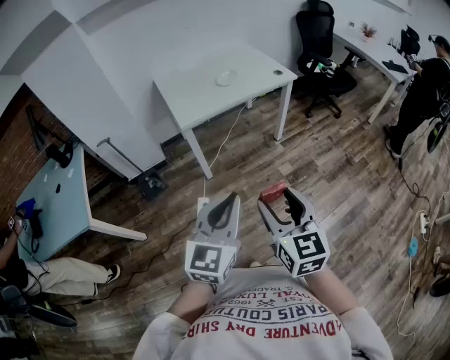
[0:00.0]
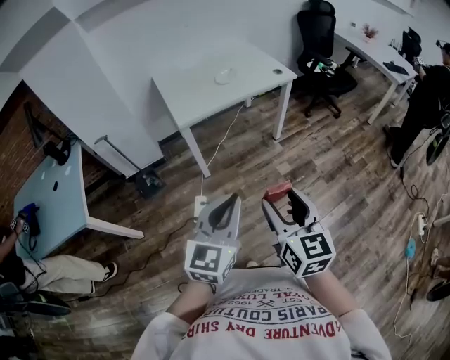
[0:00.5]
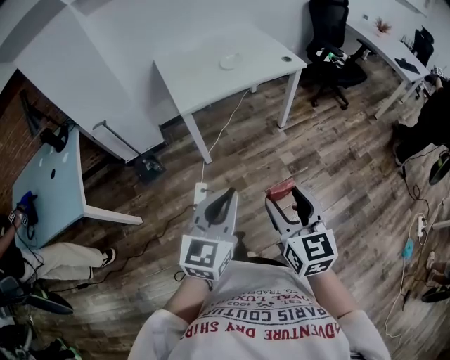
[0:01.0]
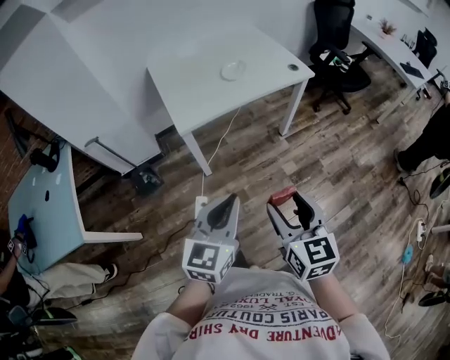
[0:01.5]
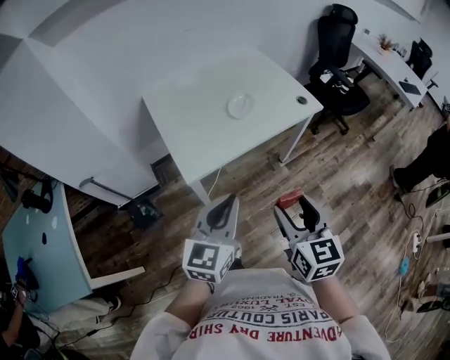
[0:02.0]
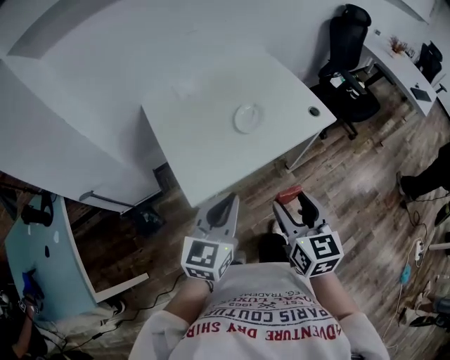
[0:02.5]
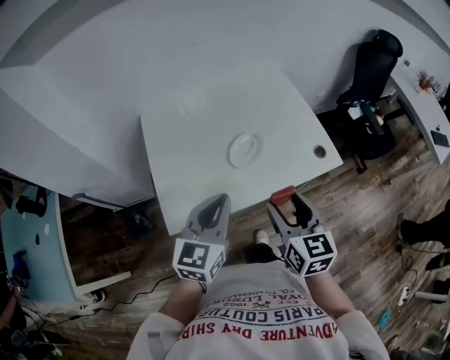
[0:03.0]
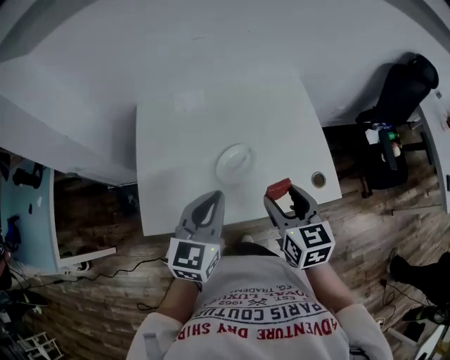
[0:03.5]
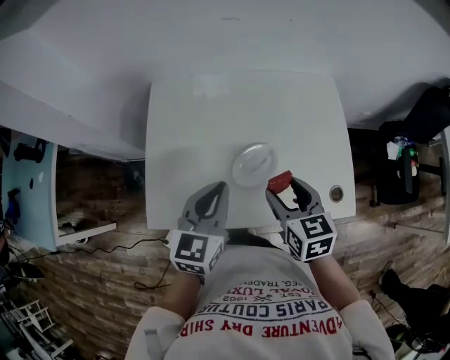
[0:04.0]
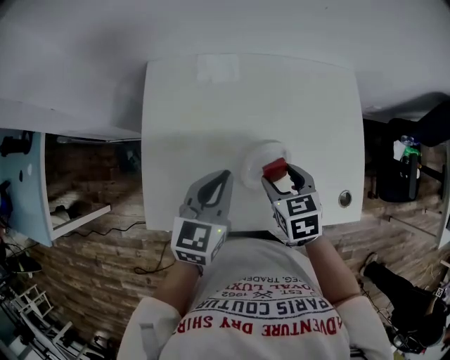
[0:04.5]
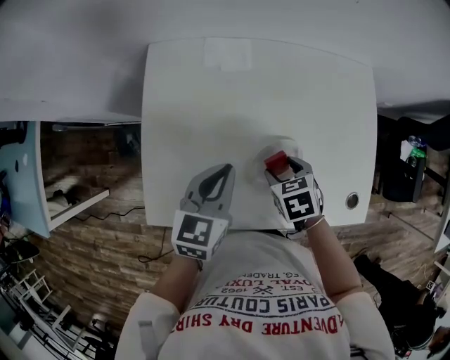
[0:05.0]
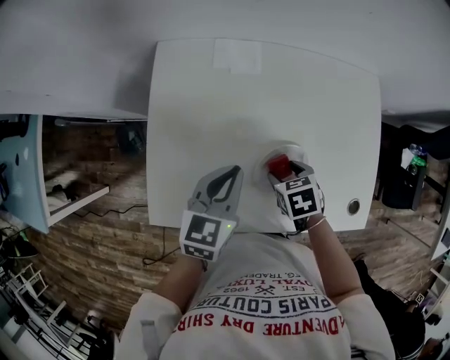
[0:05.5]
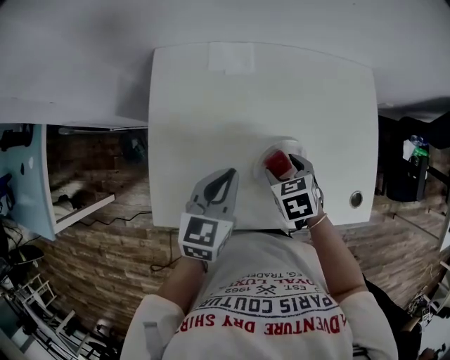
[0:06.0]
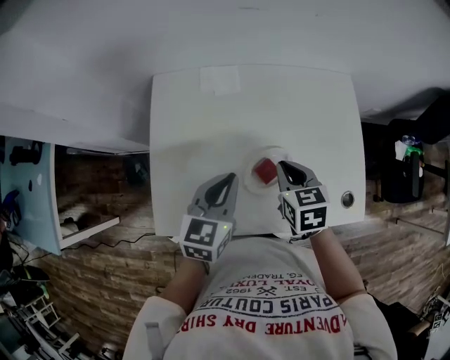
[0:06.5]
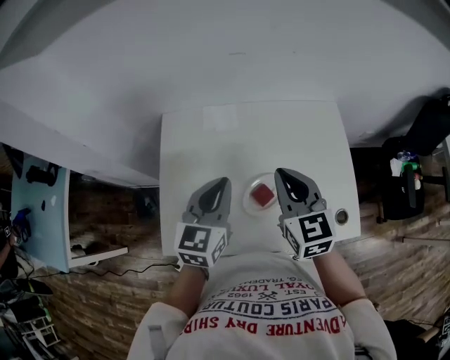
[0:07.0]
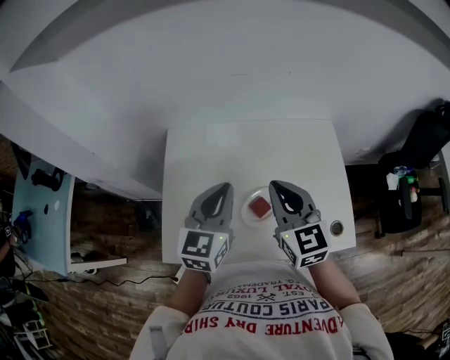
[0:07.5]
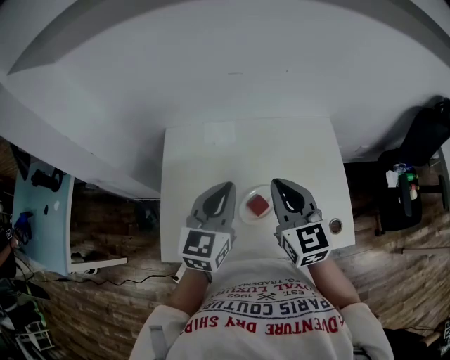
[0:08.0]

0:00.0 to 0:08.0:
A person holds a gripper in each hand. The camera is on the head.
0:00.0 to 0:02.0: Both grippers move forward, approximately 35 cm.
0:02.0 to 0:04.0: The pair of grippers is taken approximately 40 cm. The right gripper changes its angle by approximately 40 degrees. The left gripper changes its angle by approximately 30 degrees.
0:04.0 to 0:06.0: The right gripper is displaced downward and forward by roughly 15 cm, and turns by approximately 30 degrees, while the left gripper is displaced downward and forward by roughly 10 cm.
0:06.0 to 0:08.0: The right gripper shifts roughly 25 cm upward, angles its fingers upward, by about 50 degrees, and closes. The left gripper goes about 15 cm upward, and turns by about 20 degrees.

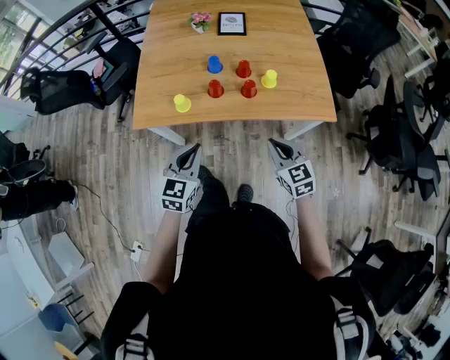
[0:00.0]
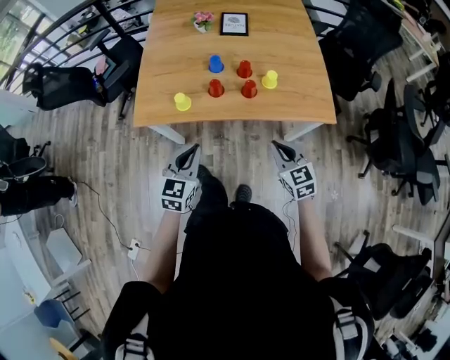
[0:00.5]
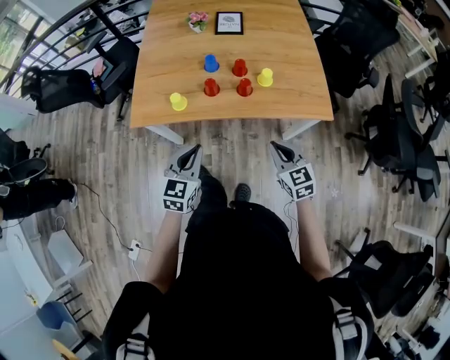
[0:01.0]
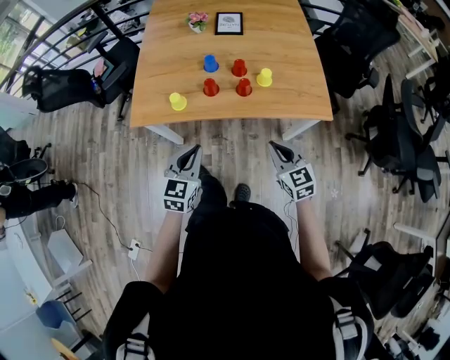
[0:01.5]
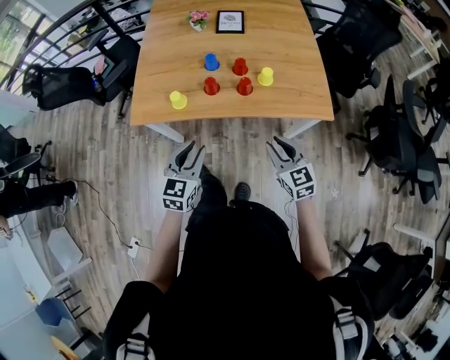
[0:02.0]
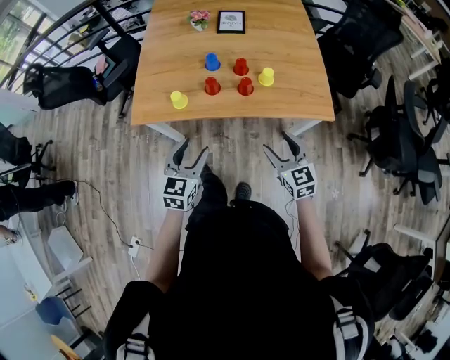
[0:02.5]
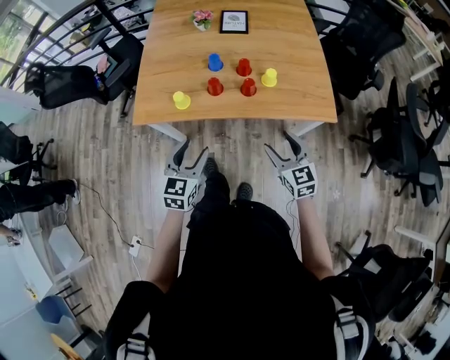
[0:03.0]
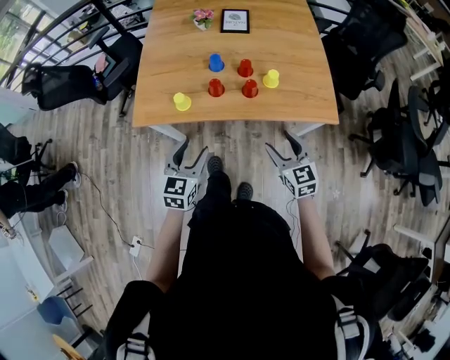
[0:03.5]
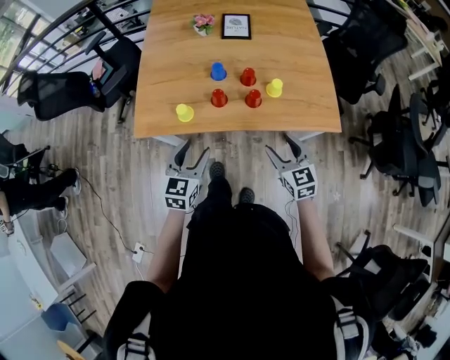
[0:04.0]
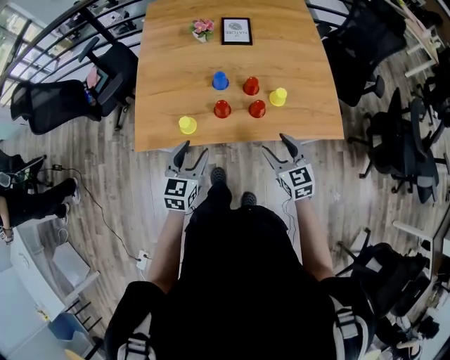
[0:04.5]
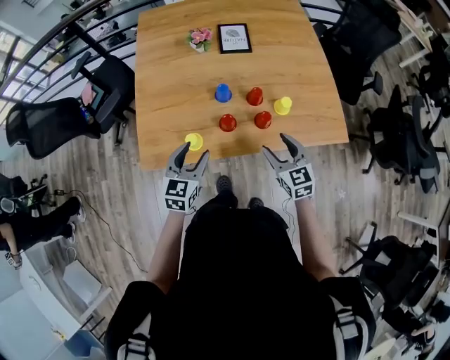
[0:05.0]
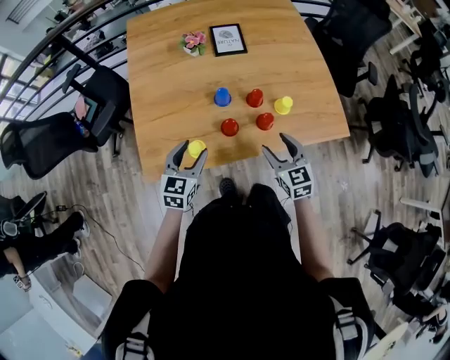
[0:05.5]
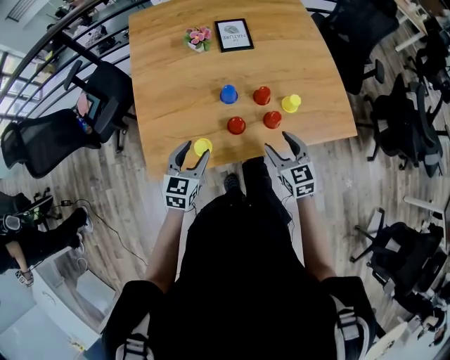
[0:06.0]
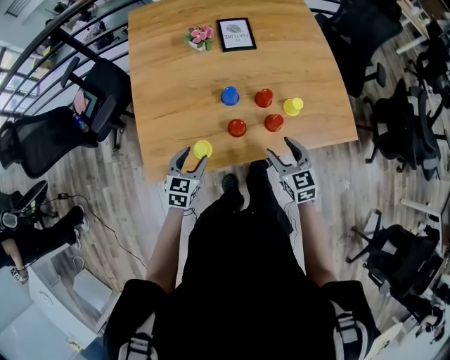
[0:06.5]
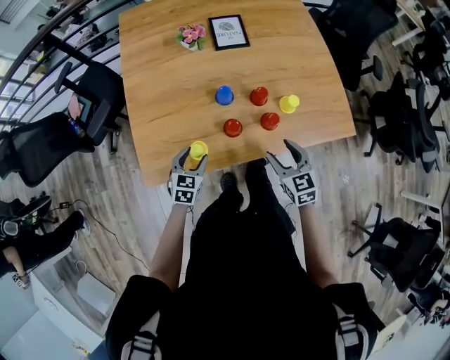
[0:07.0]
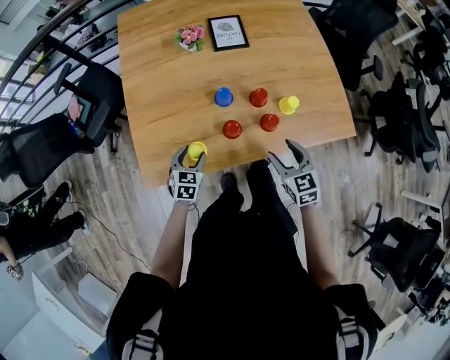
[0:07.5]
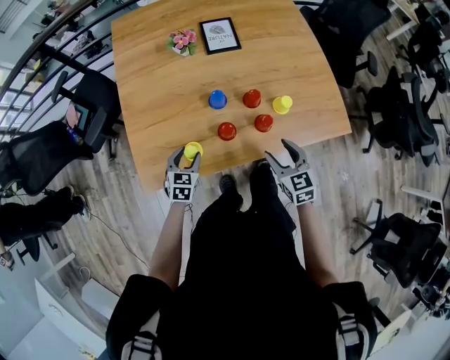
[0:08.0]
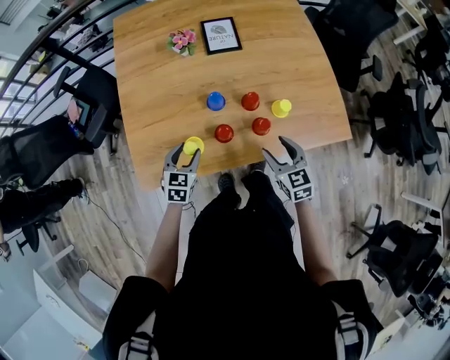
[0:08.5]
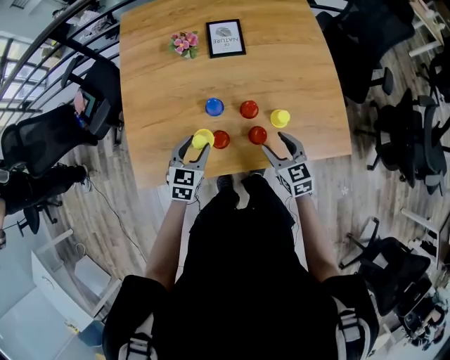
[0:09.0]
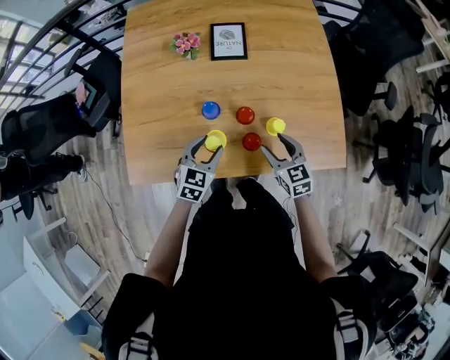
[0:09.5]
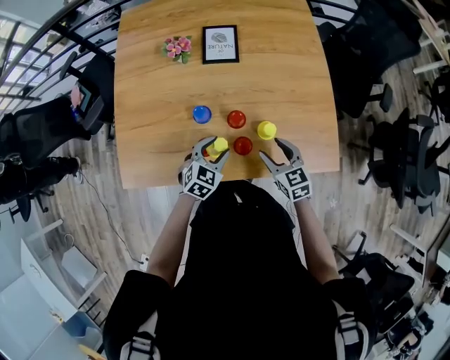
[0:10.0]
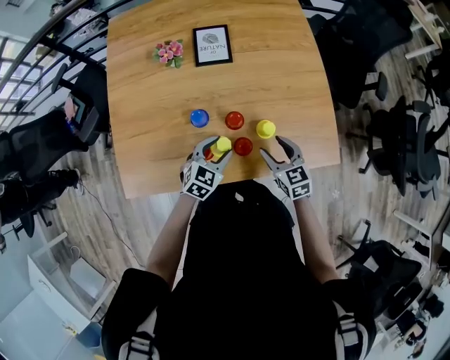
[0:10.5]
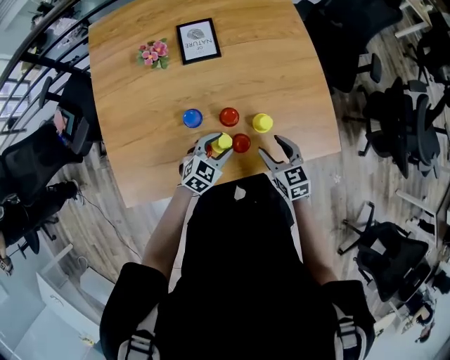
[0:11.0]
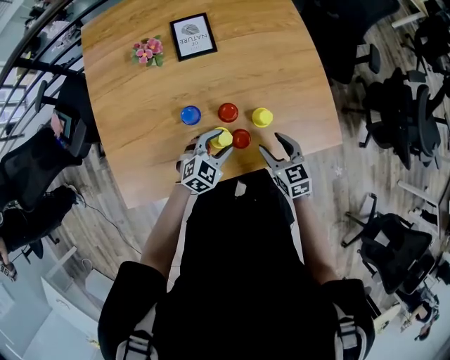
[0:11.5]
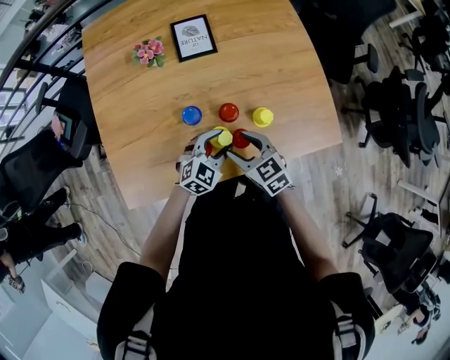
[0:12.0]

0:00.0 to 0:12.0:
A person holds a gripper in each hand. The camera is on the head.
0:00.0 to 0:02.0: The left gripper opens.
0:02.0 to 0:04.0: The grippers both shift forward by approximately 5 cm. The right gripper opens up, while the left gripper opens.
0:04.0 to 0:06.0: The grippers both shift forward and to the left by roughly 15 cm.
0:06.0 to 0:08.0: The left gripper heads downward, covering about 10 cm.
0:08.0 to 0:10.0: The right gripper shifts approximately 15 cm forward and to the right. The left gripper shifts approximately 20 cm to the right.
0:10.0 to 0:12.0: The left gripper turns by approximately 20 degrees. Meanwhile the right gripper heads to the left, covering approximately 10 cm.

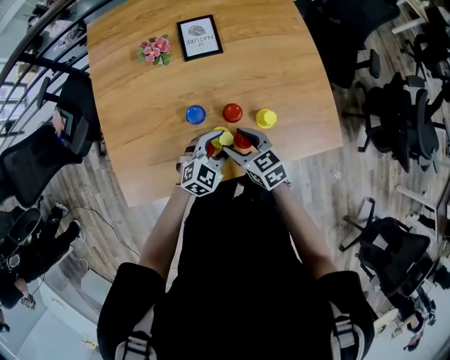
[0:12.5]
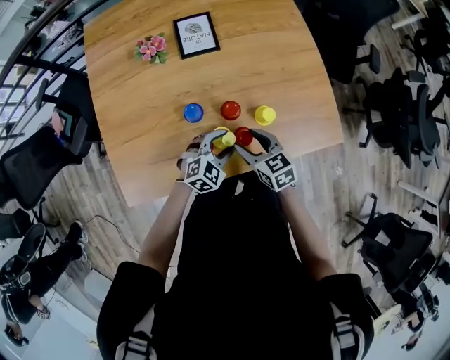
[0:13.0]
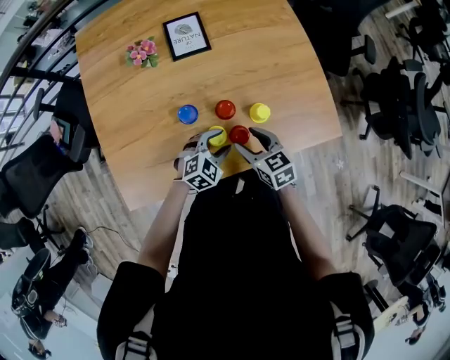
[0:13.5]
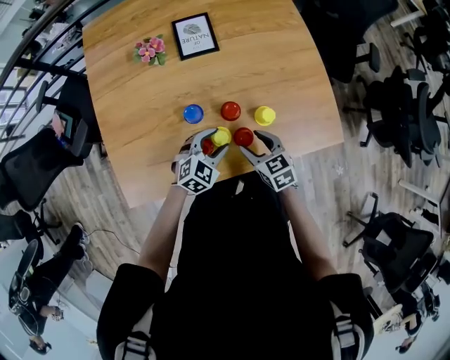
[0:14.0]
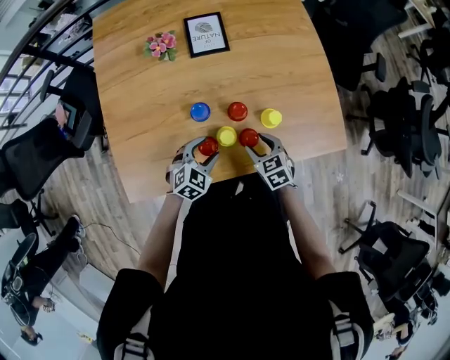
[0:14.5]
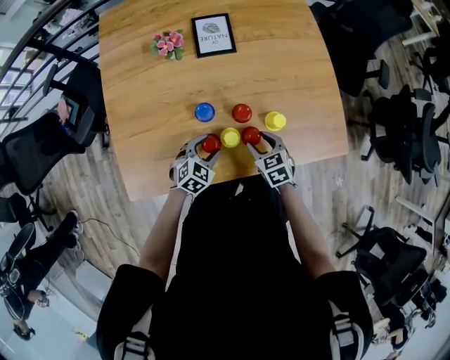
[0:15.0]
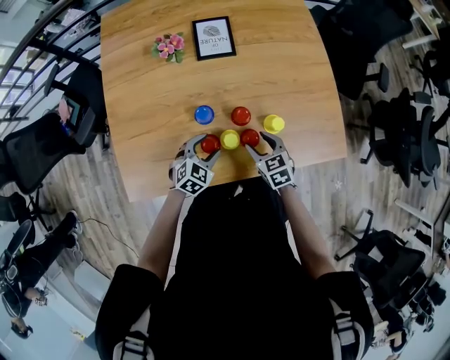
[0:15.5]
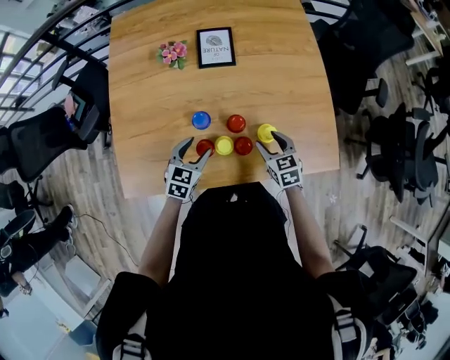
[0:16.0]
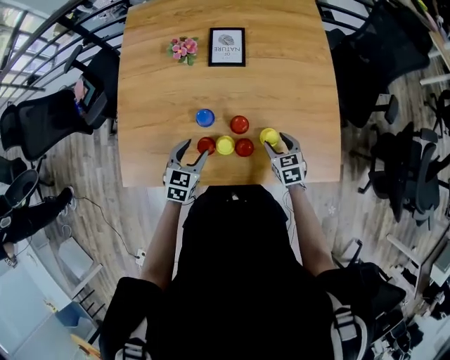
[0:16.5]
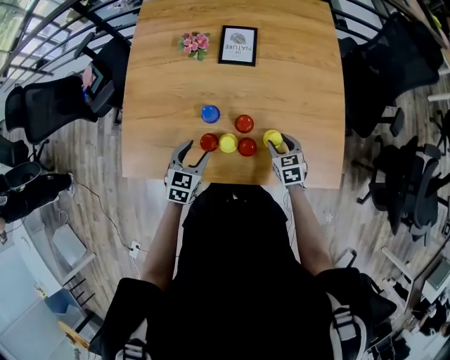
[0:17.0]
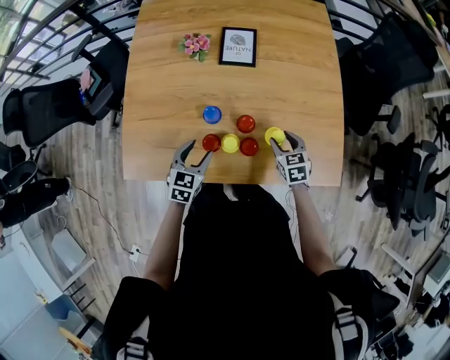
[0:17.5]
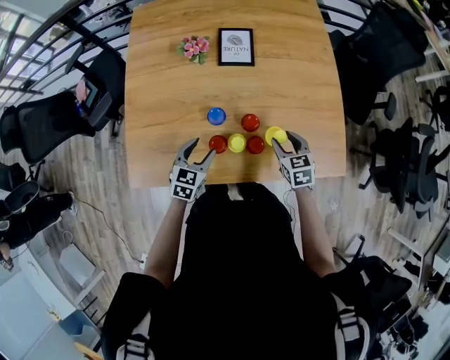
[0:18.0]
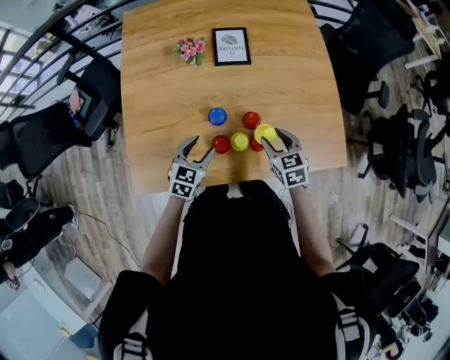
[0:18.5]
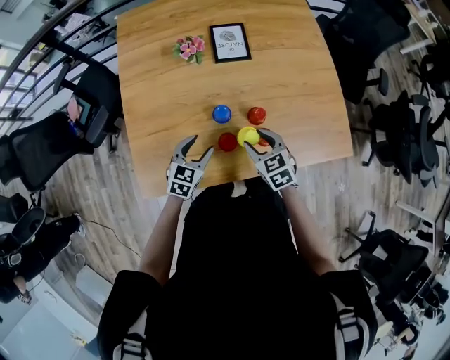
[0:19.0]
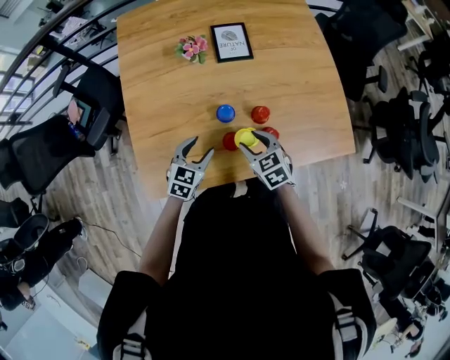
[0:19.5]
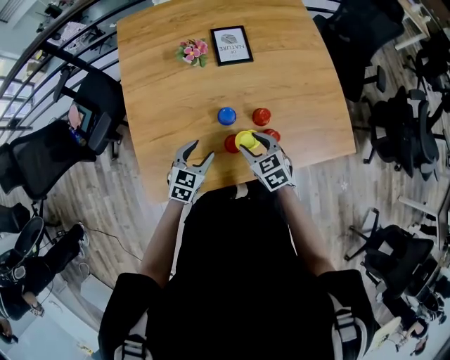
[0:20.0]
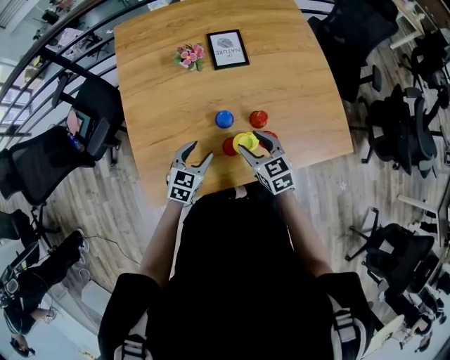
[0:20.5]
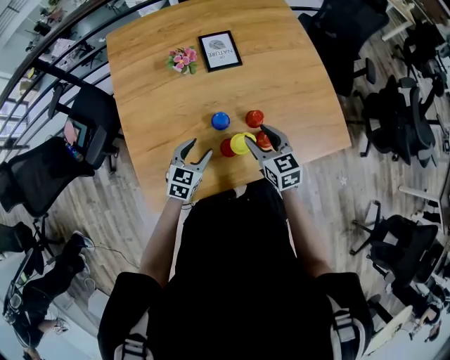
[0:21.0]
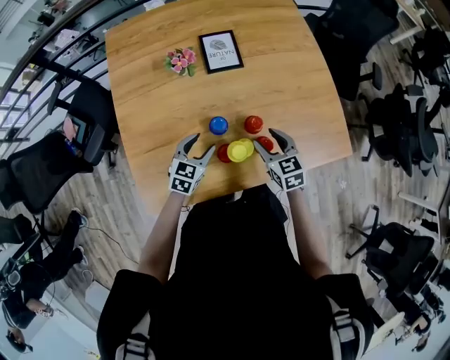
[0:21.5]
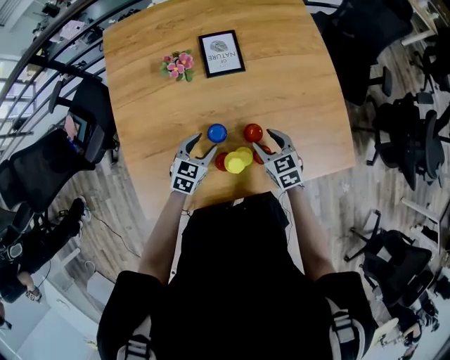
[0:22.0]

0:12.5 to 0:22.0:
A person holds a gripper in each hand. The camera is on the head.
0:12.5 to 0:14.5: The left gripper travels to the left by about 5 cm; the right gripper moves downward and to the right, approximately 10 cm.
0:14.5 to 0:16.5: The left gripper is displaced upward by some 5 cm, and changes its angle by about 40 degrees, while the right gripper heads to the right and forward, covering approximately 10 cm.
0:16.5 to 0:18.0: The right gripper is displaced upward by some 5 cm.
0:18.0 to 0:20.0: The left gripper travels to the left by approximately 5 cm; the right gripper goes some 20 cm to the left.
0:20.0 to 0:22.0: The left gripper is displaced forward by about 10 cm. The right gripper goes some 10 cm to the right and forward.
